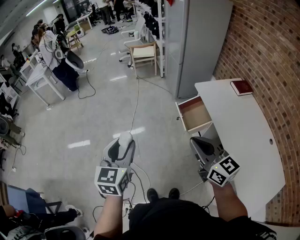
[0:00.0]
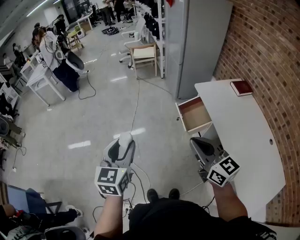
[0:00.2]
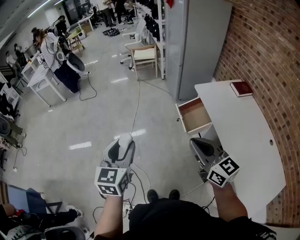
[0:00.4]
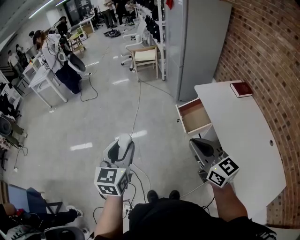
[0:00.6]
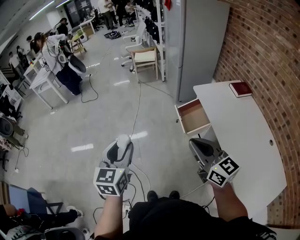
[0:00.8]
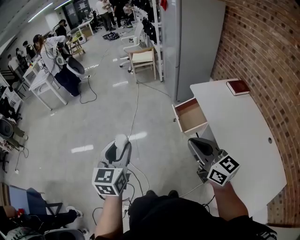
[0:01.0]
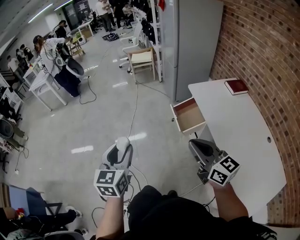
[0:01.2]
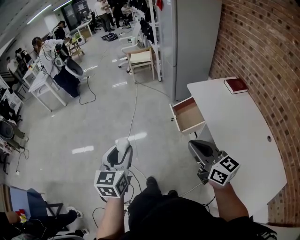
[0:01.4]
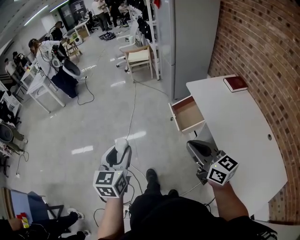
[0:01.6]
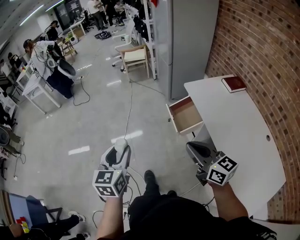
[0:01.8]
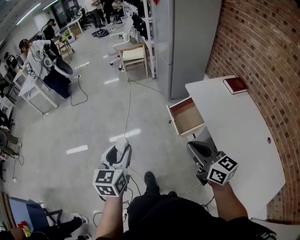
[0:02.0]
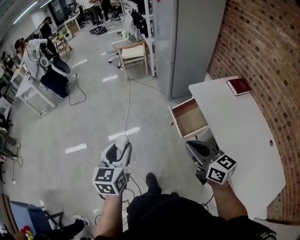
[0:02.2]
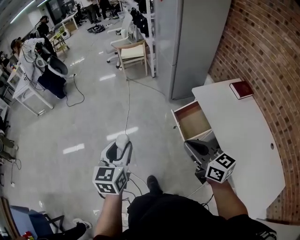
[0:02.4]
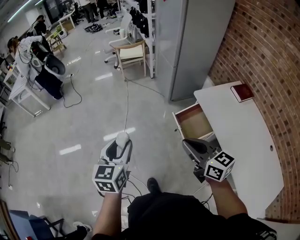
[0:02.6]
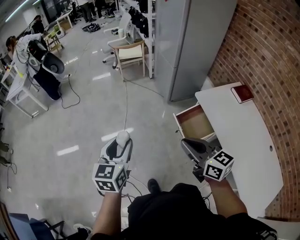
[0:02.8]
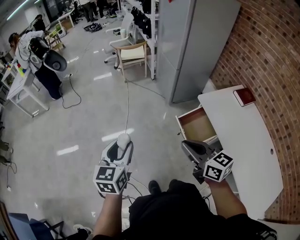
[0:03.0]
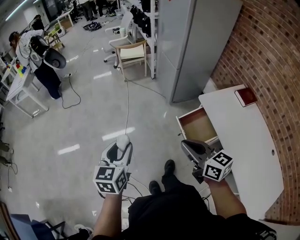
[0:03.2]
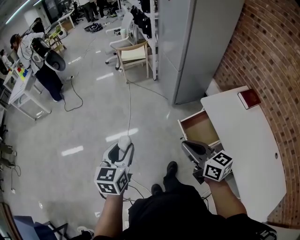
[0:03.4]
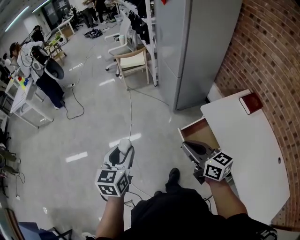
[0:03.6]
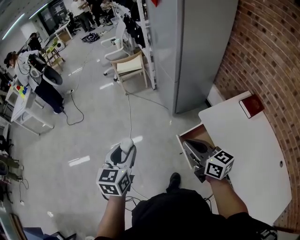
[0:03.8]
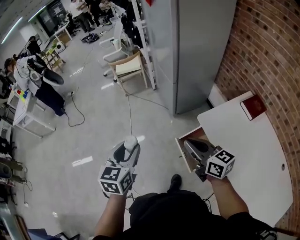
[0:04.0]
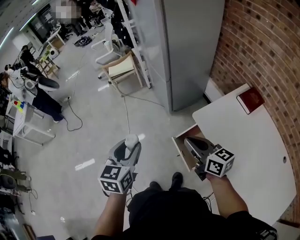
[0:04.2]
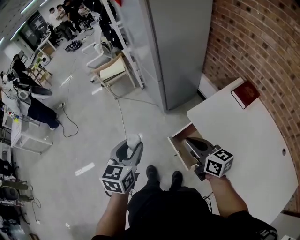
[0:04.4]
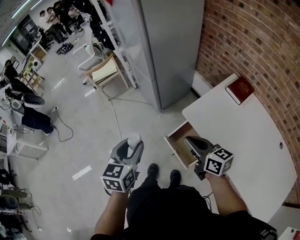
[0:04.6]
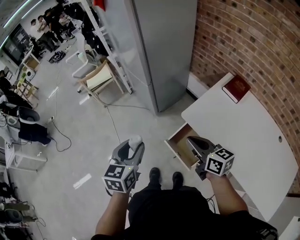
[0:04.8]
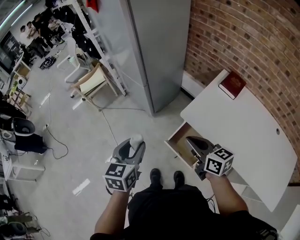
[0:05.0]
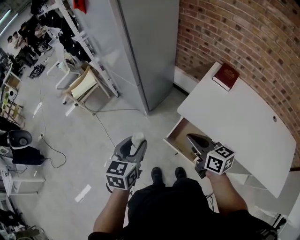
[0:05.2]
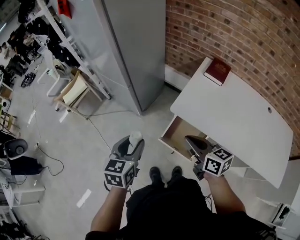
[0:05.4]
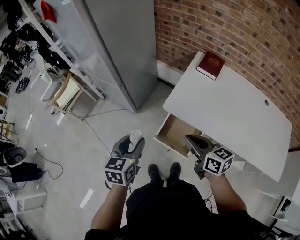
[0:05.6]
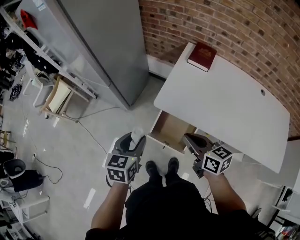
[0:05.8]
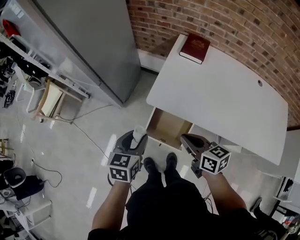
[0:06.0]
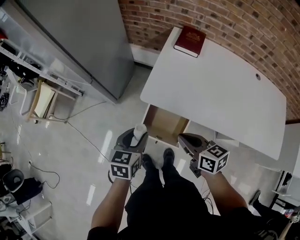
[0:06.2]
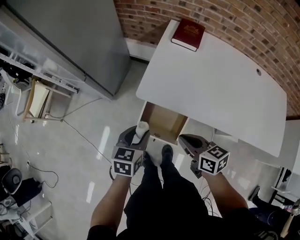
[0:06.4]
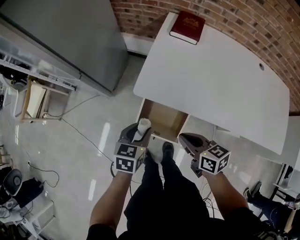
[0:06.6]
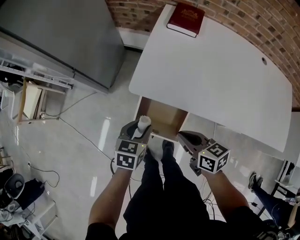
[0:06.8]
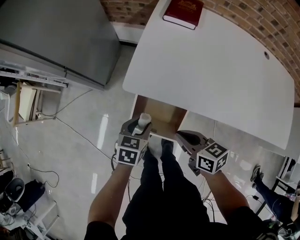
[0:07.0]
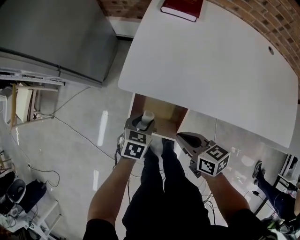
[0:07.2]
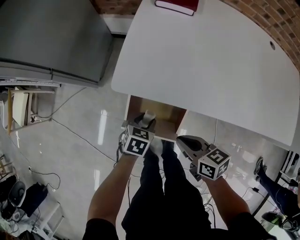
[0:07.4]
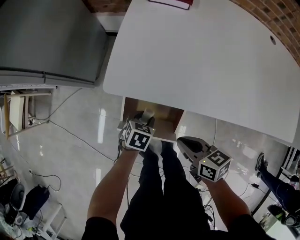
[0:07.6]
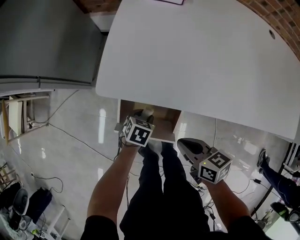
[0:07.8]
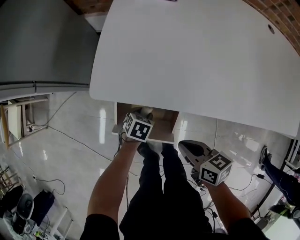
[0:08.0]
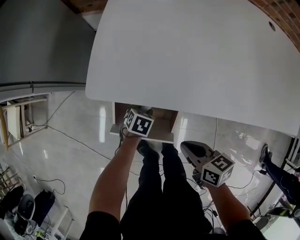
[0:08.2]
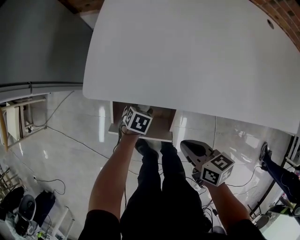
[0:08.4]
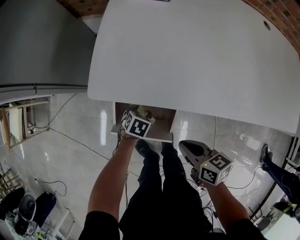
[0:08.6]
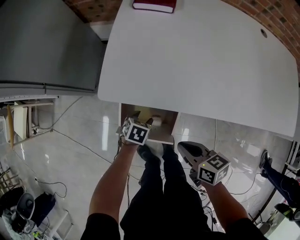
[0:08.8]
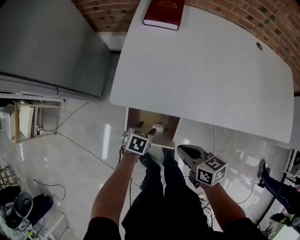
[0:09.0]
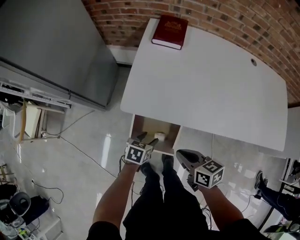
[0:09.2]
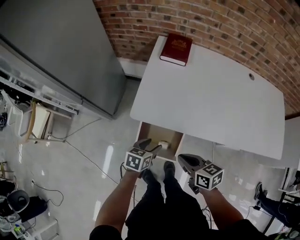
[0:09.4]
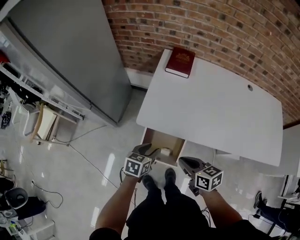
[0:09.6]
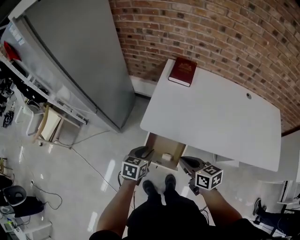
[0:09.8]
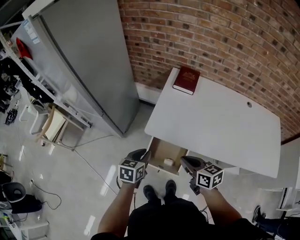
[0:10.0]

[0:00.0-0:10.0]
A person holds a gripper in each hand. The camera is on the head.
0:00.0 to 0:01.4: The right gripper heads to the right and backward, covering some 10 cm; the left gripper changes place by some 5 cm.
0:01.4 to 0:02.8: The two grippers go roughly 25 cm forward.
0:02.8 to 0:04.2: The grippers both shift forward and to the right by approximately 30 cm.
0:04.2 to 0:05.8: The left gripper changes place by about 20 cm, and swivels about 40 degrees. Meanwhile the right gripper moves some 10 cm, and changes its angle by some 40 degrees.
0:05.8 to 0:07.2: The right gripper heads downward, covering approximately 20 cm. The left gripper moves downward and to the right, some 35 cm, and turns by approximately 30 degrees.
0:07.2 to 0:08.6: The left gripper goes roughly 15 cm downward. The right gripper moves to the right and downward, about 10 cm.
0:08.6 to 0:10.0: The right gripper shifts roughly 25 cm upward, and turns by roughly 20 degrees; the left gripper goes some 40 cm upward, points its fingers some 30 degrees further upward, and closes its fingers.

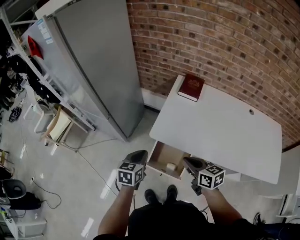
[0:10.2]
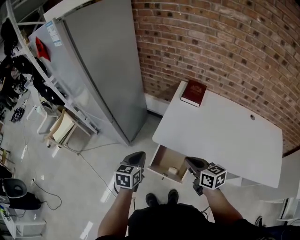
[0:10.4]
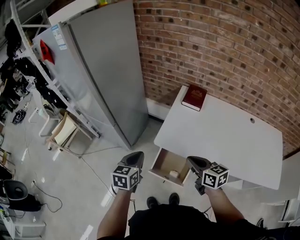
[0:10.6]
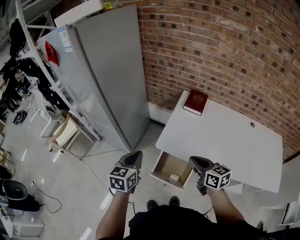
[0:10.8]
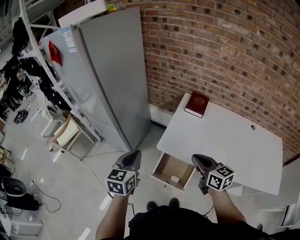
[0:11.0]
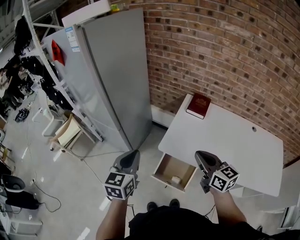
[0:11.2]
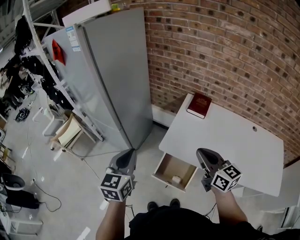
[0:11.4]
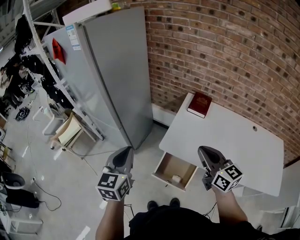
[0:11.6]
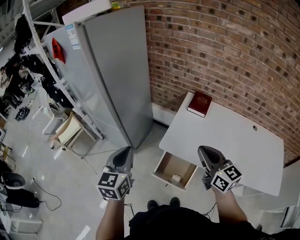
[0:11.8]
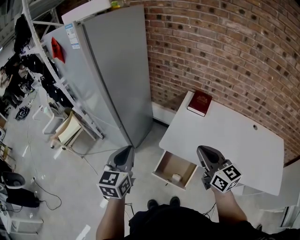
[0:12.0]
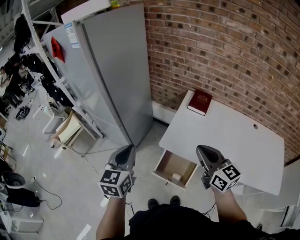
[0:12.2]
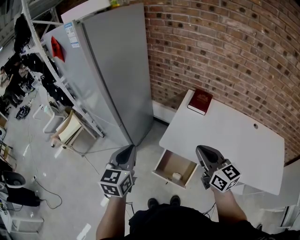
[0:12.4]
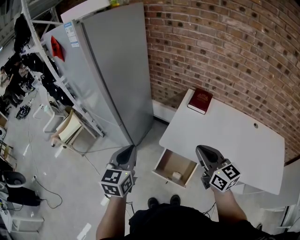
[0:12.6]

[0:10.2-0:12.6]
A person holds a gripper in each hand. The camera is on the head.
0:10.2 to 0:11.4: The left gripper shifts some 20 cm upward and to the left, and rotates some 30 degrees; the right gripper goes approximately 15 cm upward, and swivels some 20 degrees.
0:11.4 to 0:12.6: The grippers stay close to where they were, moving slightly.

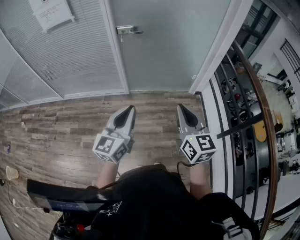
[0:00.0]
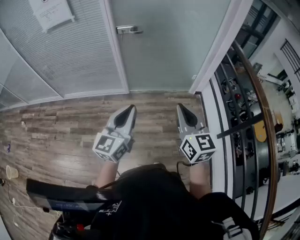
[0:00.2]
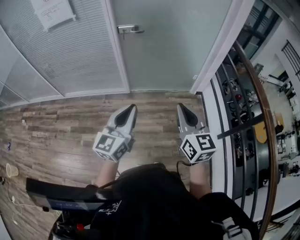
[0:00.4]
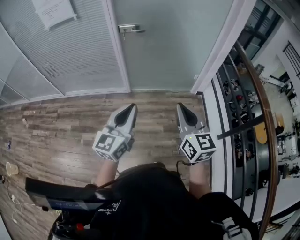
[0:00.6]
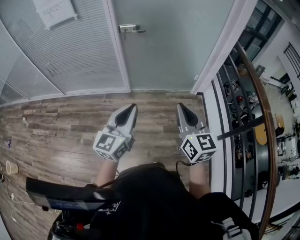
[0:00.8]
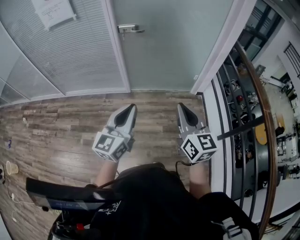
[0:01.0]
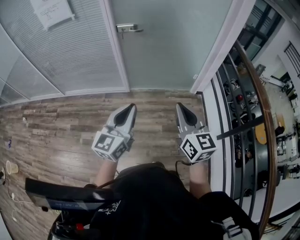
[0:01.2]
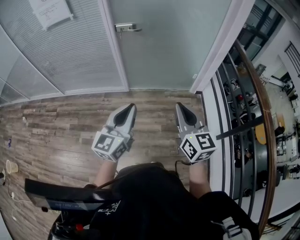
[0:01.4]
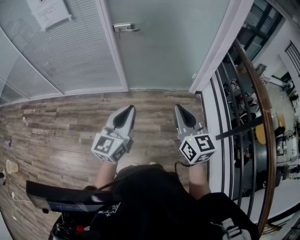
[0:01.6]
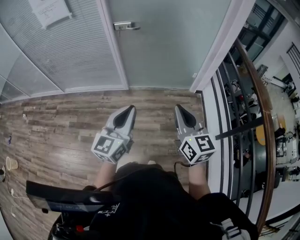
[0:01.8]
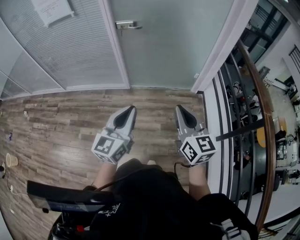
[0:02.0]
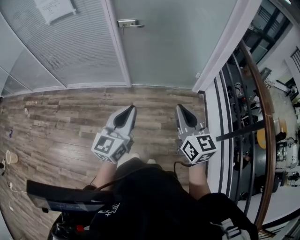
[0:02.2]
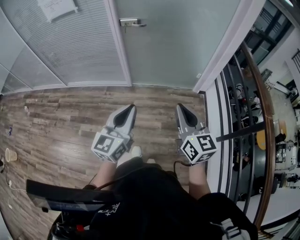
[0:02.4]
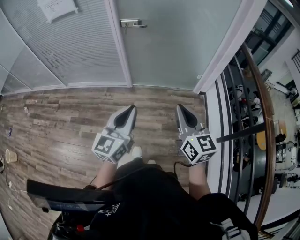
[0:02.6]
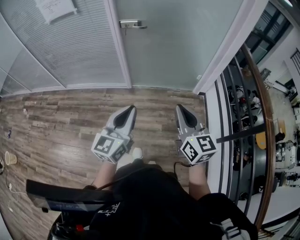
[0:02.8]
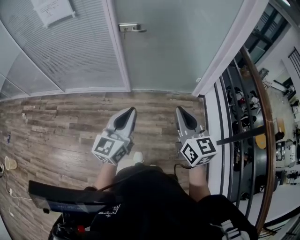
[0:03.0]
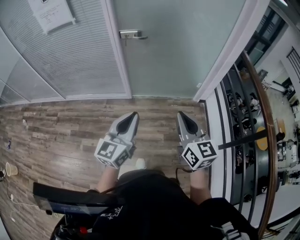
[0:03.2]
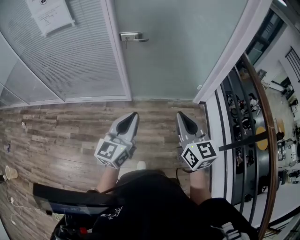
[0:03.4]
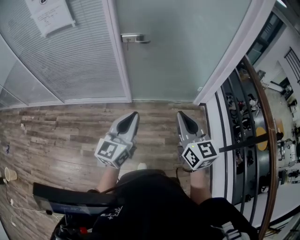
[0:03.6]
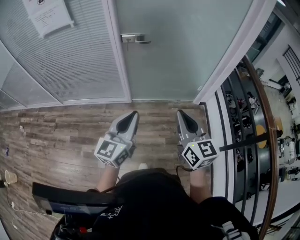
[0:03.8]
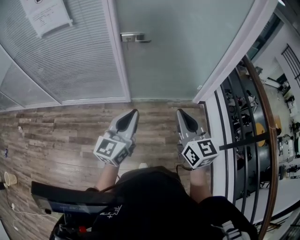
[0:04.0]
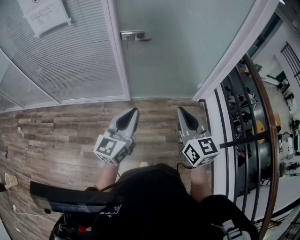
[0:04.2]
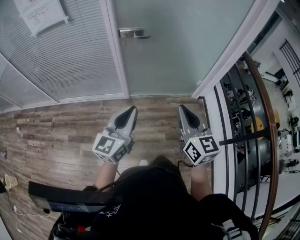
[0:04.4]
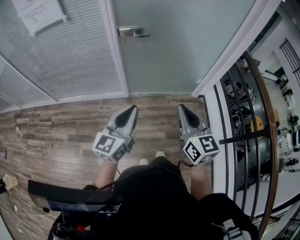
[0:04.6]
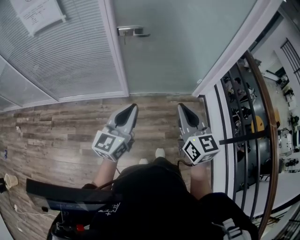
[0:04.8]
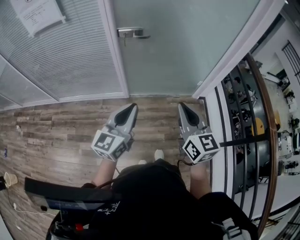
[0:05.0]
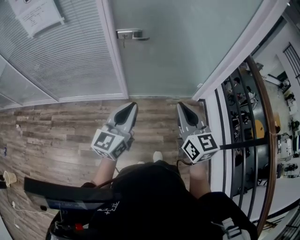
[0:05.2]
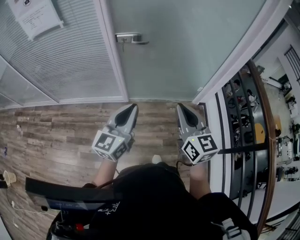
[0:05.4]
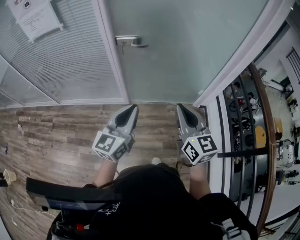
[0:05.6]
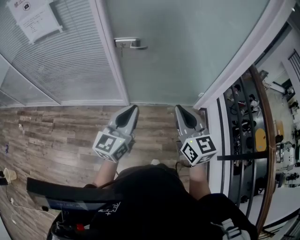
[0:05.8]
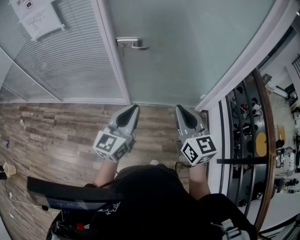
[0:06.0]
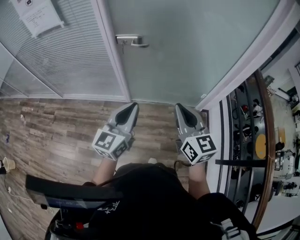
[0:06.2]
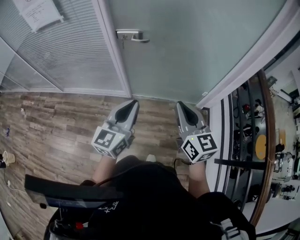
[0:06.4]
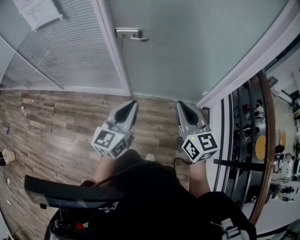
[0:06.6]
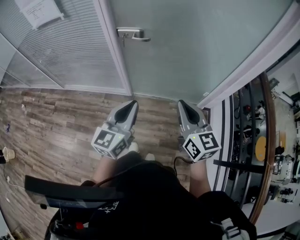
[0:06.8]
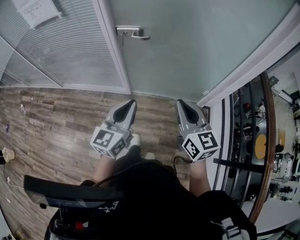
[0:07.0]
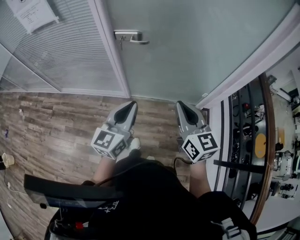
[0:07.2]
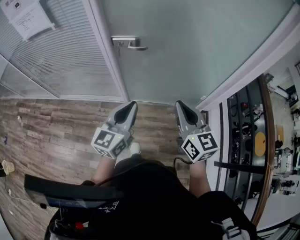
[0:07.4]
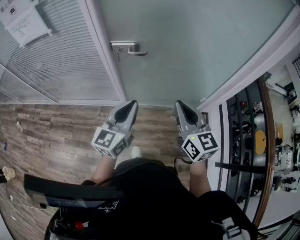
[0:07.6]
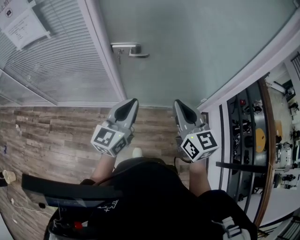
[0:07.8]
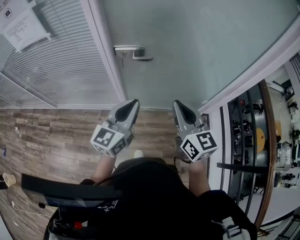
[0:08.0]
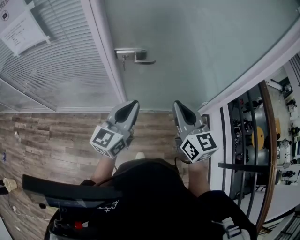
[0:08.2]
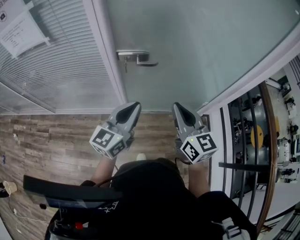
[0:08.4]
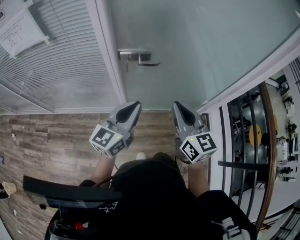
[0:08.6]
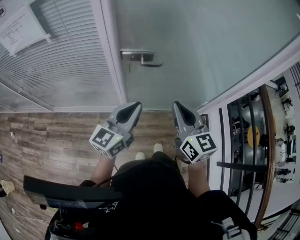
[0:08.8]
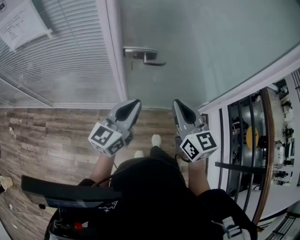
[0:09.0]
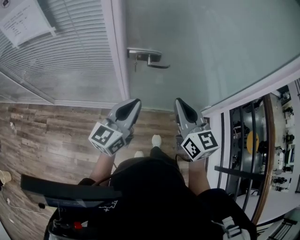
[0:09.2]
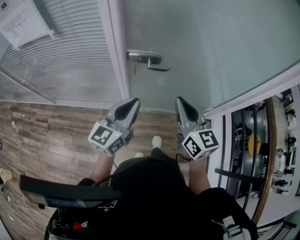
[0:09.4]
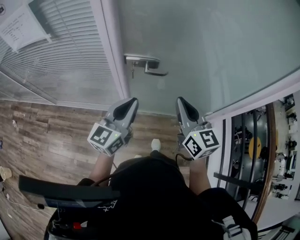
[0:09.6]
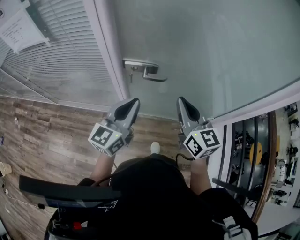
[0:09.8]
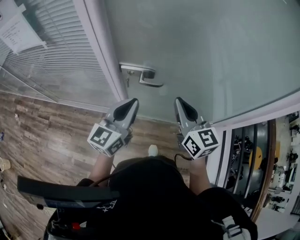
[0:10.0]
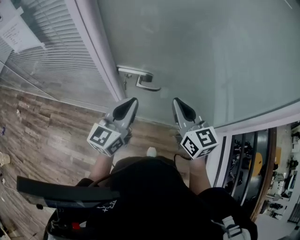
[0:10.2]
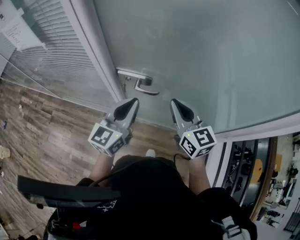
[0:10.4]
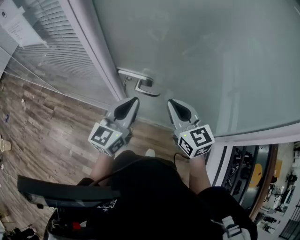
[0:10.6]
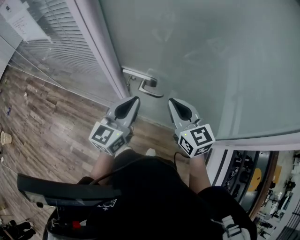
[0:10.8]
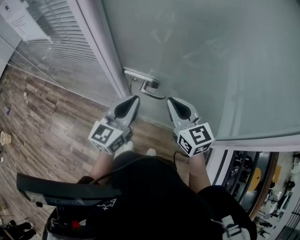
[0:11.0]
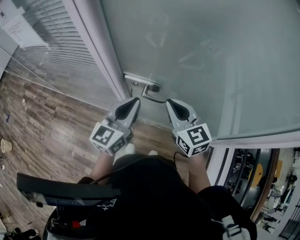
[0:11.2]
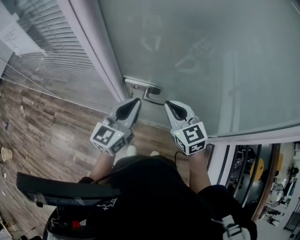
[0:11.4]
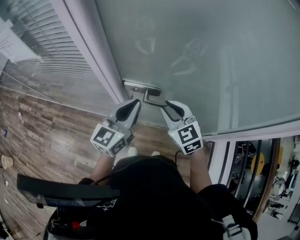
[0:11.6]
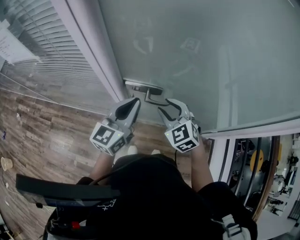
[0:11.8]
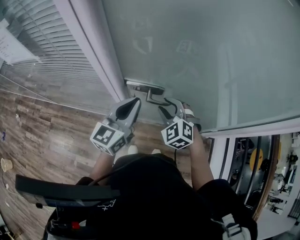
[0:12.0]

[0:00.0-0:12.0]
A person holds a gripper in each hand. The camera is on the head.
0:00.0 to 0:03.0: The grippers stay close to where they were, moving slightly.
0:03.0 to 0:04.4: Both grippers move forward and to the left, about 10 cm.
0:04.4 to 0:06.0: The right gripper moves forward, approximately 10 cm. Meanwhile the left gripper moves forward and to the right, some 10 cm.
0:06.0 to 0:07.6: The two grippers go about 10 cm forward.
0:07.6 to 0:09.0: The grippers both shift to the left and forward by roughly 10 cm.
0:09.0 to 0:10.4: The grippers both shift forward by roughly 15 cm.
0:10.4 to 0:12.0: The right gripper is displaced downward, to the left and forward by approximately 15 cm, rolls counterclockwise, seen from behind, by about 40 degrees, and opens; the left gripper moves forward, roughly 5 cm.
